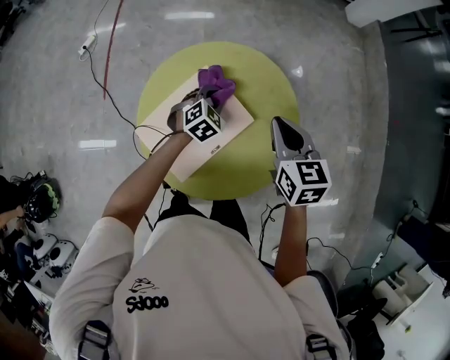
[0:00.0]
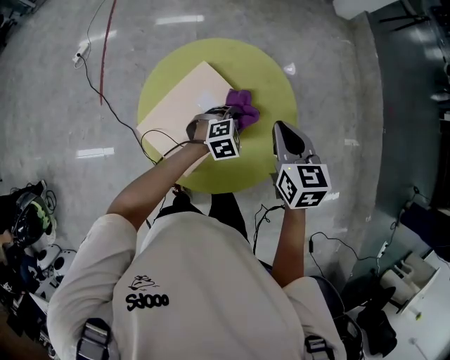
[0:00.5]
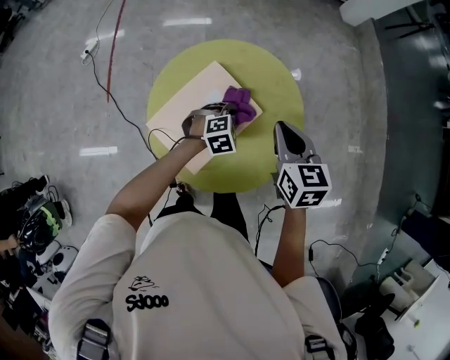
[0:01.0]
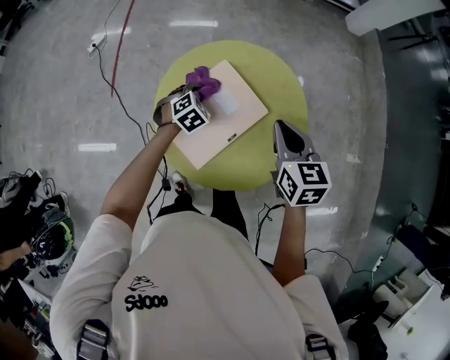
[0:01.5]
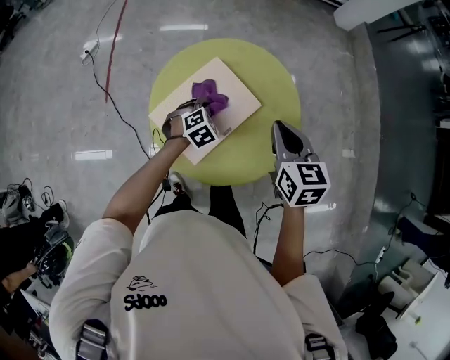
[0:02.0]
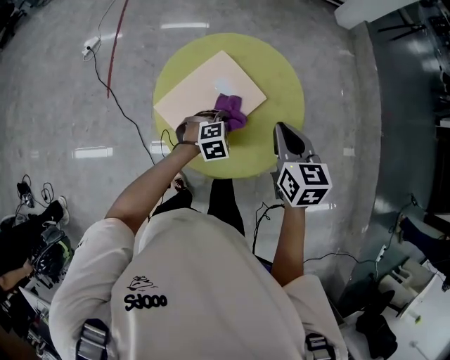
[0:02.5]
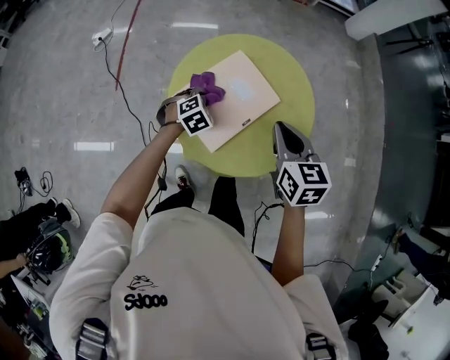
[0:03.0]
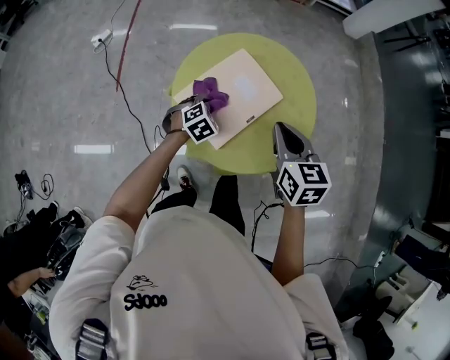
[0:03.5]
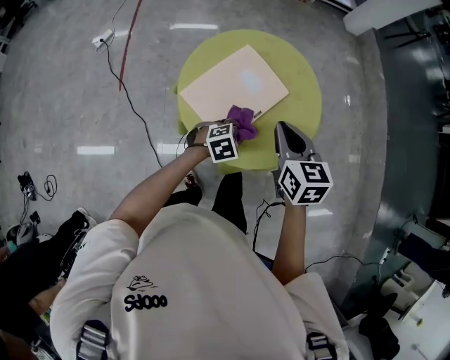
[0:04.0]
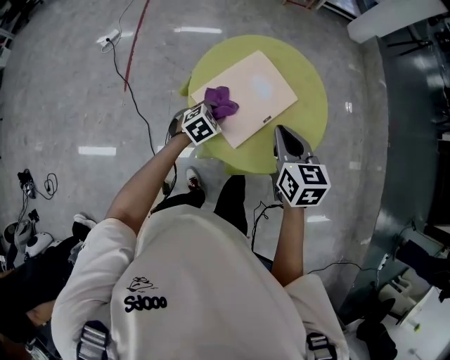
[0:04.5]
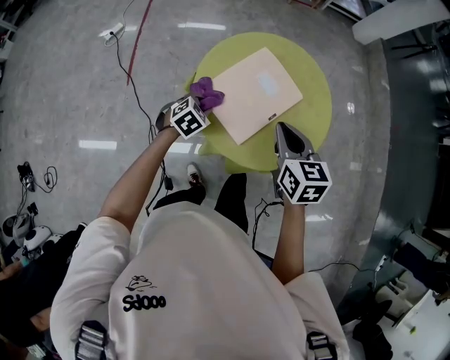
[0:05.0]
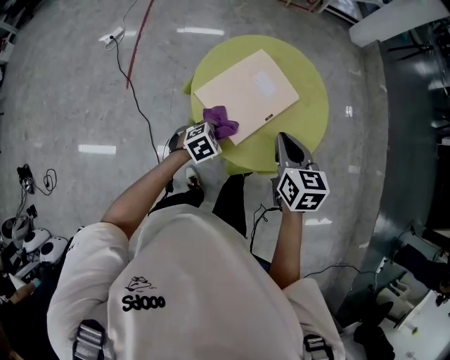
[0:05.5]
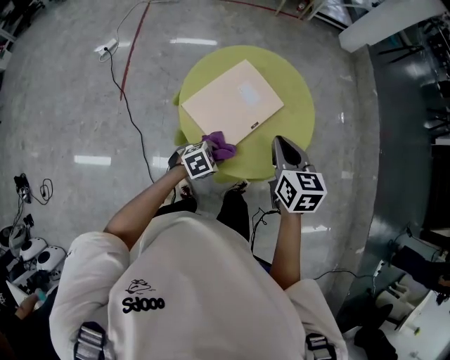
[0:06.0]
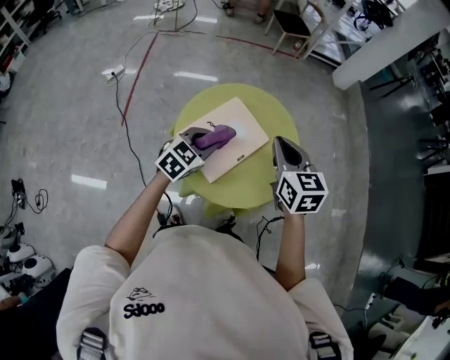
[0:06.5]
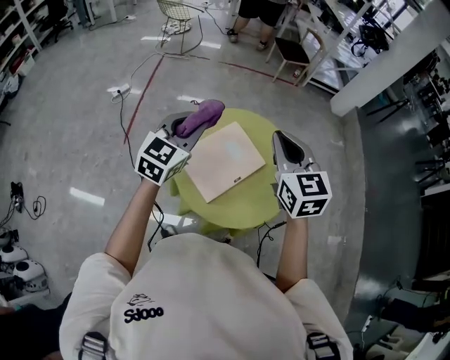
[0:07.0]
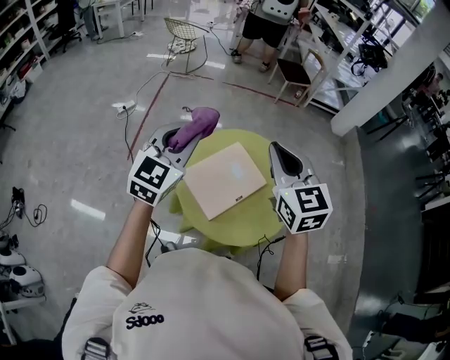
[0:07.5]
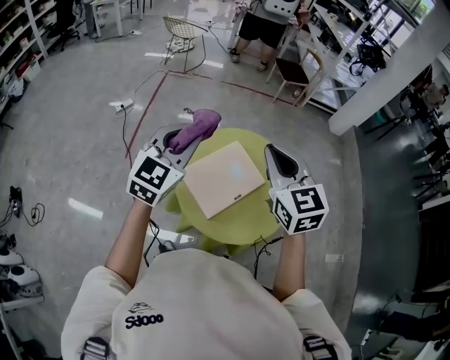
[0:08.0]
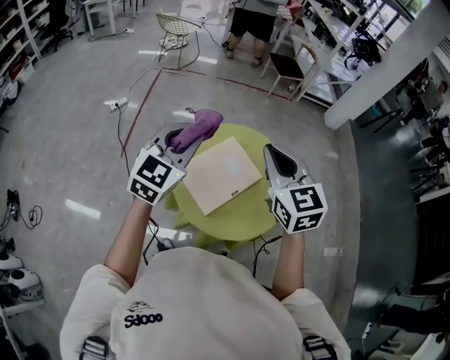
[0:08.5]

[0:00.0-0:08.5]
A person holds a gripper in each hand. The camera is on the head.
0:00.0 to 0:02.0: The left gripper moves left and right over roughly 20 cm, changing direction 2 times. The right gripper moves backward, some 10 cm.
0:02.0 to 0:04.0: The right gripper travels backward and to the left by about 10 cm. Meanwhile the left gripper travels backward by some 15 cm, and rotates about 20 degrees.
0:04.0 to 0:06.5: The left gripper moves left and right over approximately 20 cm, changing direction 2 times, and changes its angle by approximately 40 degrees. The right gripper heads upward and forward, covering approximately 10 cm.
0:06.5 to 0:08.5: The right gripper moves upward and to the left, some 15 cm, and rotates about 20 degrees, while the left gripper shifts roughly 20 cm upward, and rotates some 30 degrees.

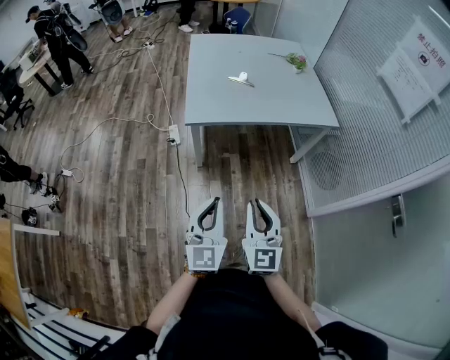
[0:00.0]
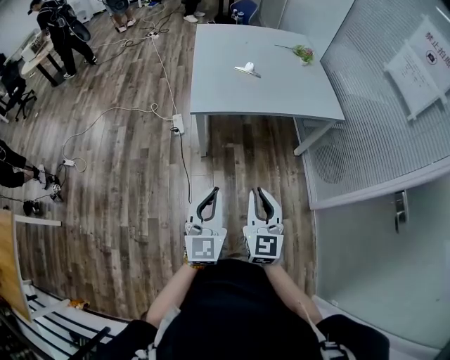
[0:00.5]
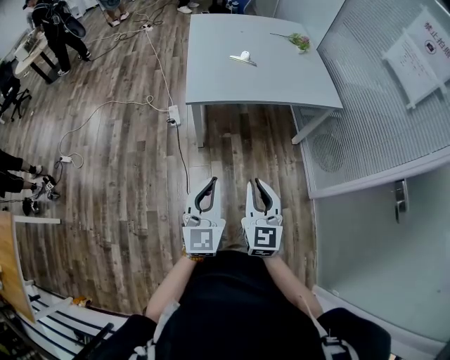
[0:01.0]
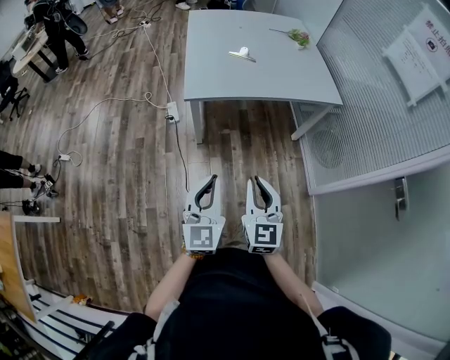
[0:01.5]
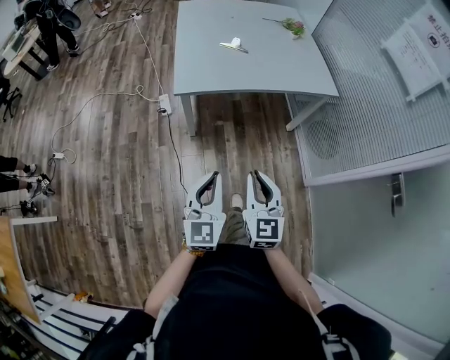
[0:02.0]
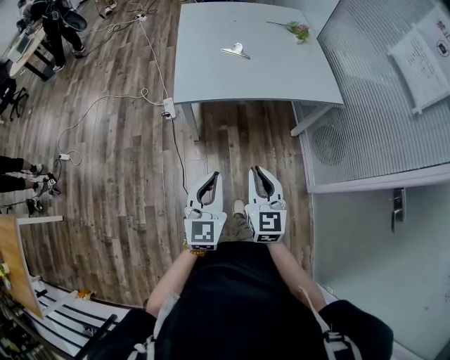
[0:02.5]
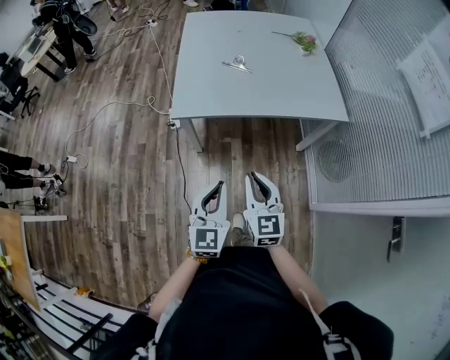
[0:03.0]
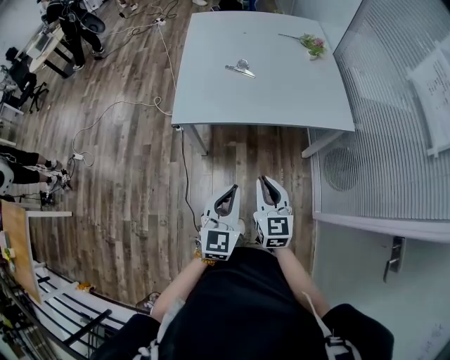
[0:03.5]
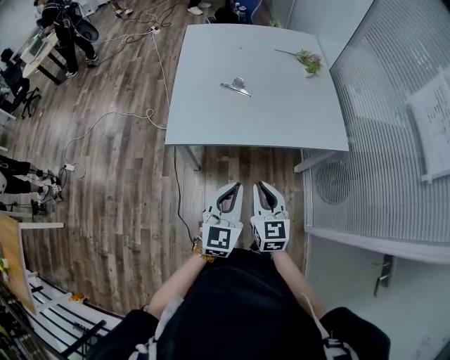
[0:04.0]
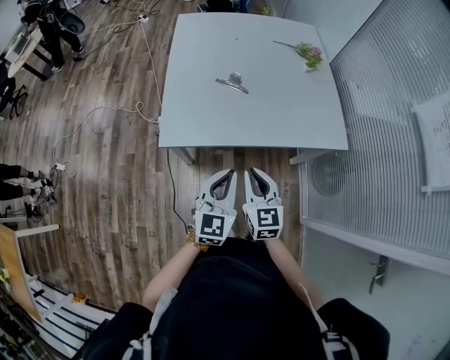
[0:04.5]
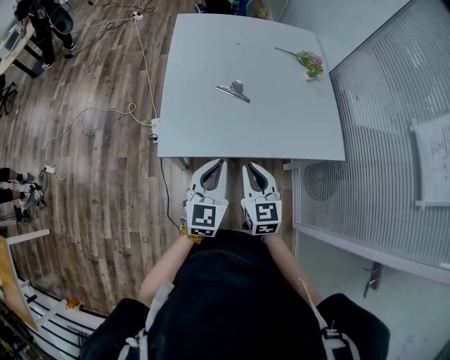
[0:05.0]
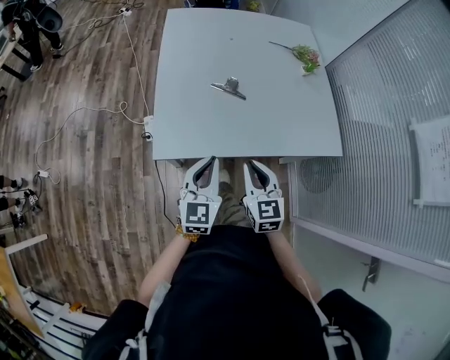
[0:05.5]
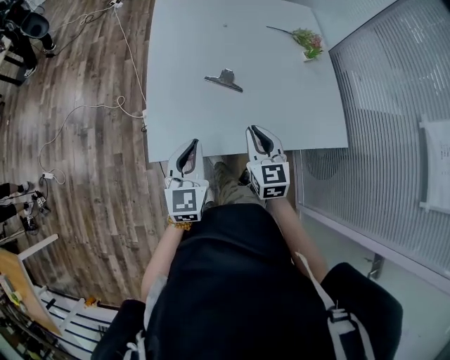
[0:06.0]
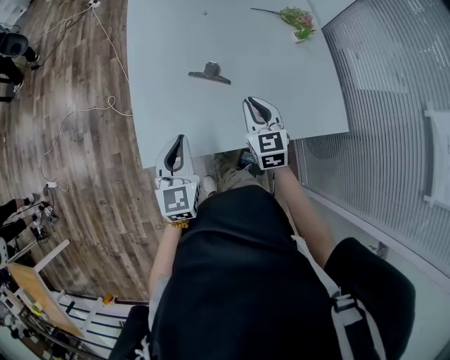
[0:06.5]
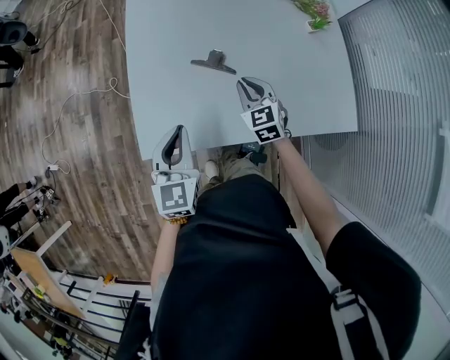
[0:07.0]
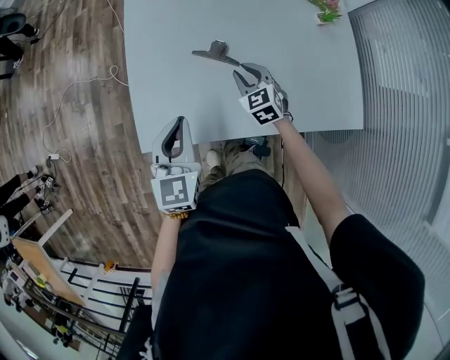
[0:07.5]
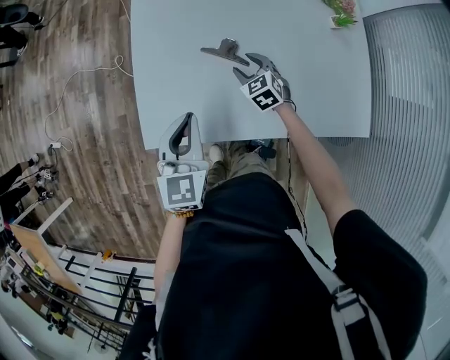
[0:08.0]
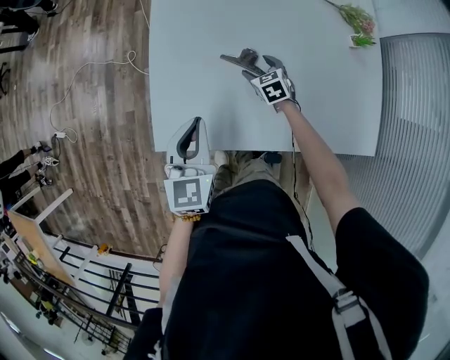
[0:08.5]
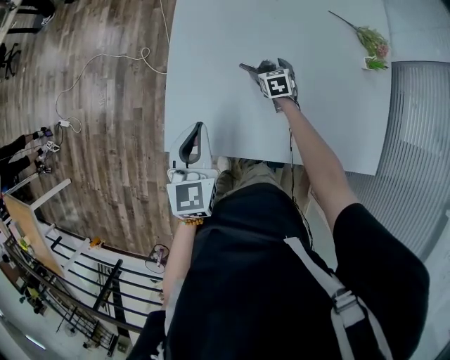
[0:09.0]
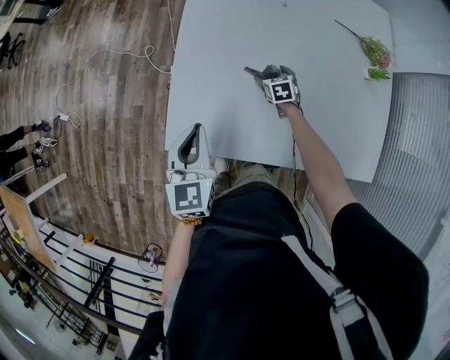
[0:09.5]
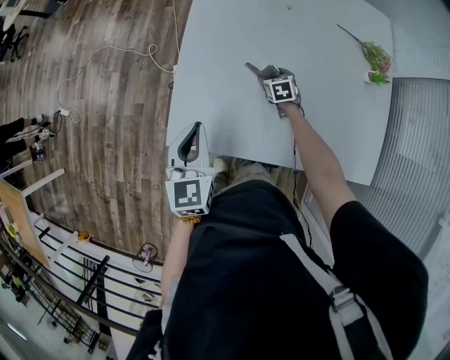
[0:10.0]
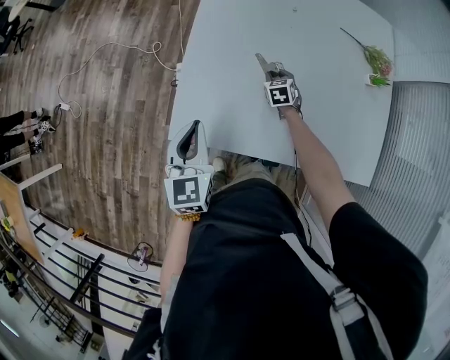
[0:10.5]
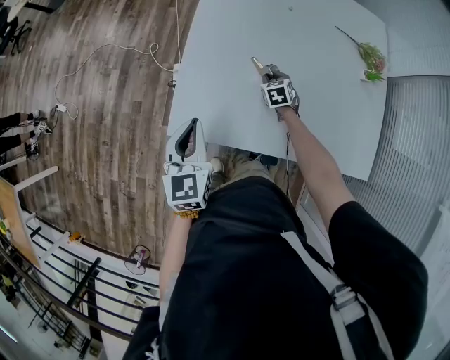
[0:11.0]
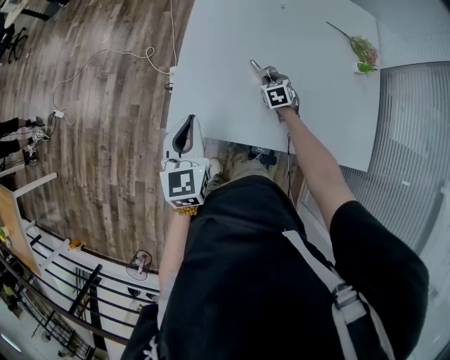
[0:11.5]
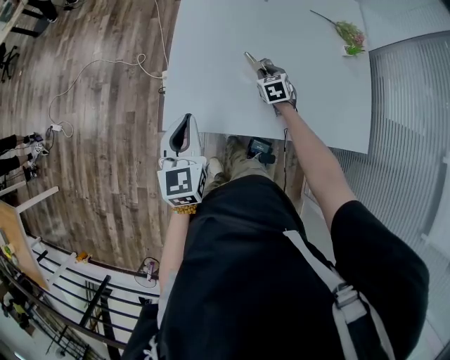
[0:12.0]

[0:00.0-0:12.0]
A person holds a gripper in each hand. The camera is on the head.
0:00.0 to 0:02.0: The grippers stay close to where they were, moving slightly.
0:02.0 to 0:04.0: The grippers both shift forward and to the right by some 30 cm.
0:04.0 to 0:06.0: The right gripper is displaced forward by about 30 cm. Meanwhile the left gripper is displaced forward and to the left by roughly 30 cm.
0:06.0 to 0:08.0: The right gripper heads forward and downward, covering some 30 cm, turns by some 30 degrees, and opens up. The left gripper moves forward, approximately 10 cm.
0:08.0 to 0:10.0: The right gripper is displaced downward and forward by roughly 10 cm. Meanwhile the left gripper travels to the left by about 10 cm.
0:10.0 to 0:12.0: The right gripper is displaced backward and upward by about 15 cm, and closes up. Meanwhile the left gripper moves backward, roughly 10 cm.

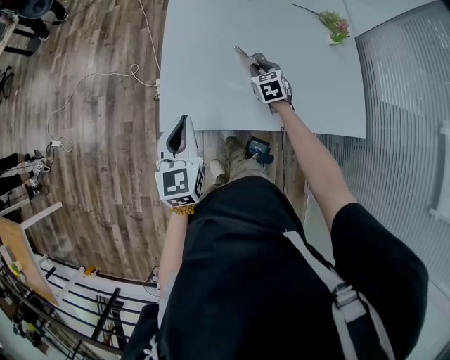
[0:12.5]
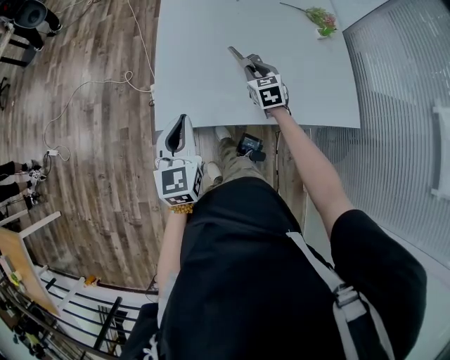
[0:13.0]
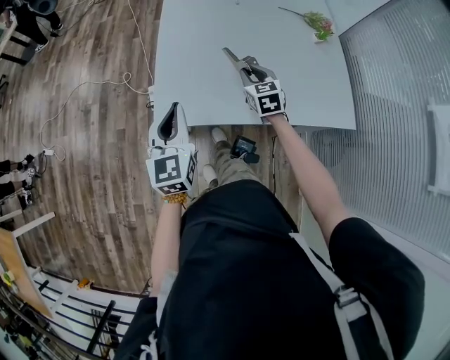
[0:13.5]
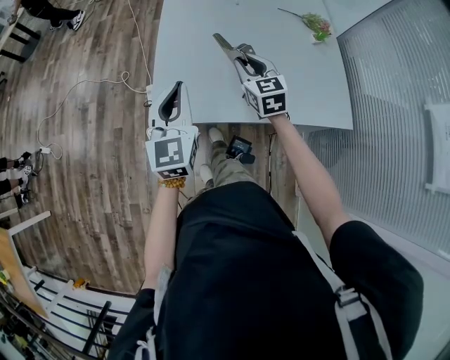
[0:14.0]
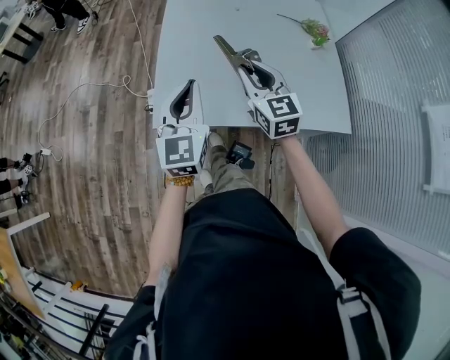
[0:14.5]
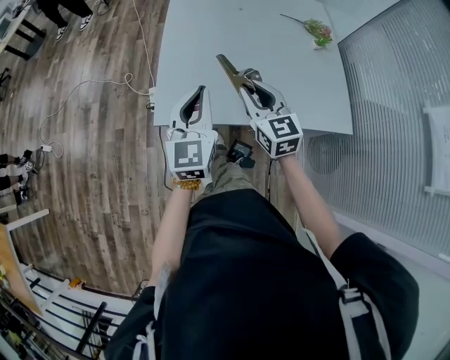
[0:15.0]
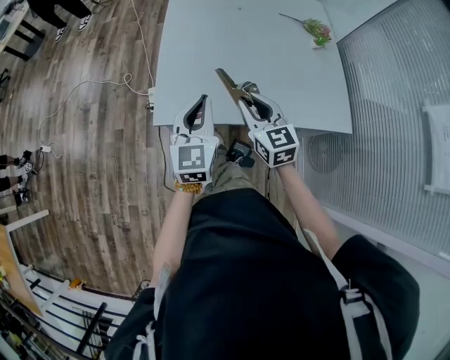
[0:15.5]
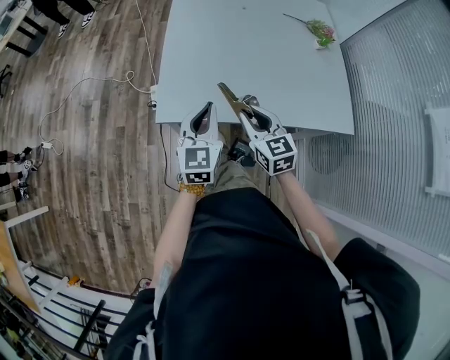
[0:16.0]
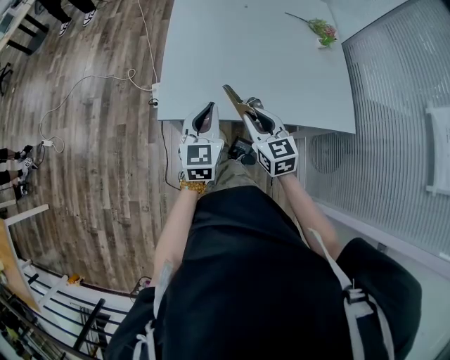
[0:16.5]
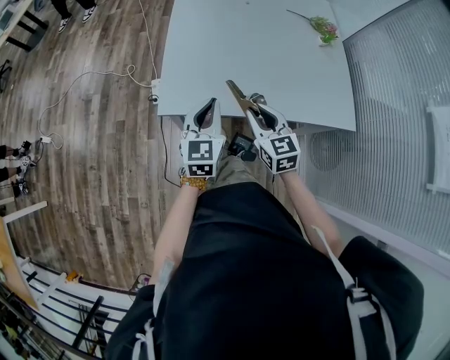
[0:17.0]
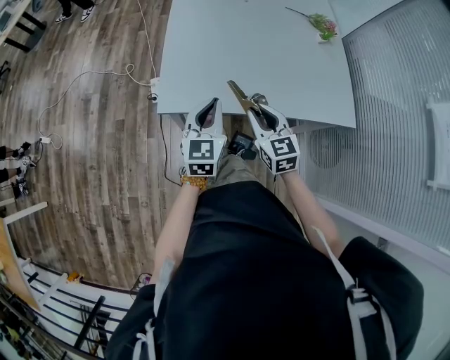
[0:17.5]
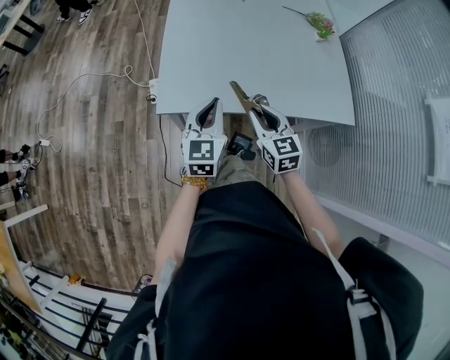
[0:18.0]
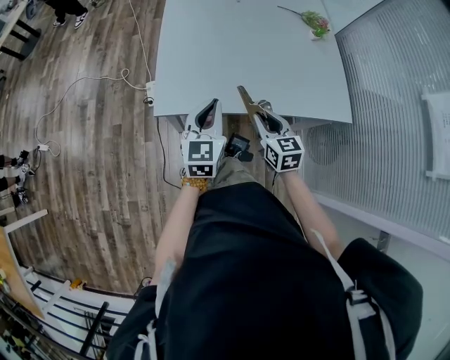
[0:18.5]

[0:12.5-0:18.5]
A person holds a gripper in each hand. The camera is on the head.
0:12.5 to 0:14.5: The right gripper is displaced upward and backward by approximately 25 cm, and turns by some 30 degrees. The left gripper travels upward by some 10 cm.
0:14.5 to 0:16.5: The right gripper travels backward and downward by some 15 cm. Meanwhile the left gripper is displaced downward and backward by some 10 cm.
0:16.5 to 0:18.5: The right gripper shifts by roughly 5 cm.
